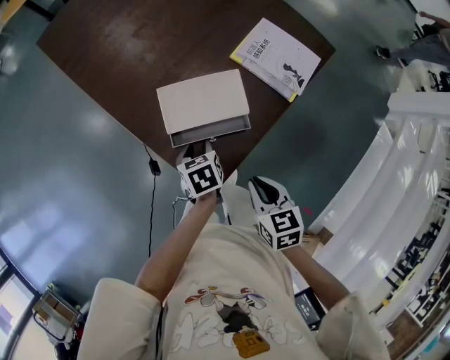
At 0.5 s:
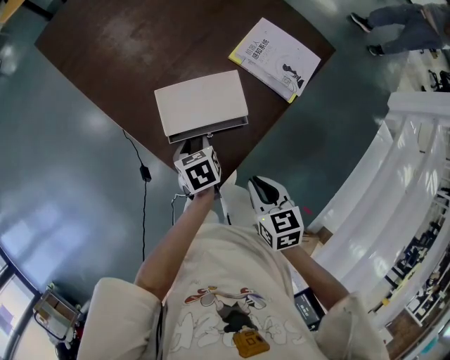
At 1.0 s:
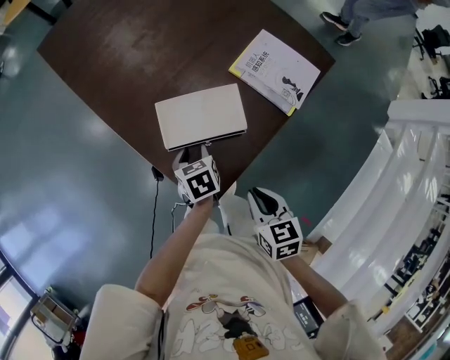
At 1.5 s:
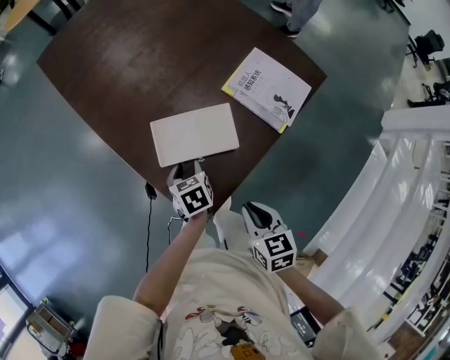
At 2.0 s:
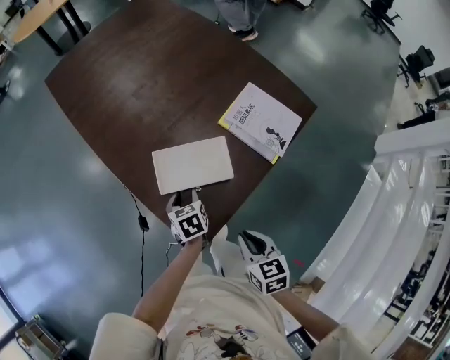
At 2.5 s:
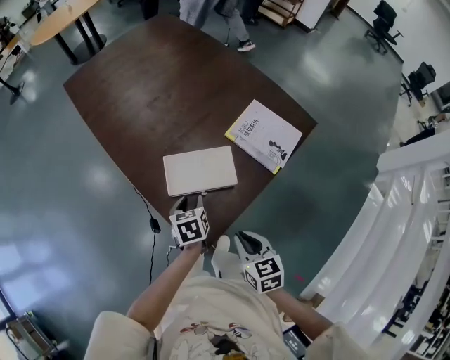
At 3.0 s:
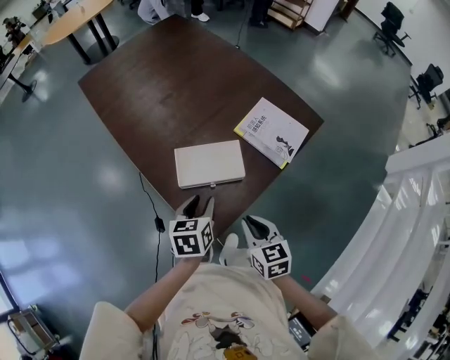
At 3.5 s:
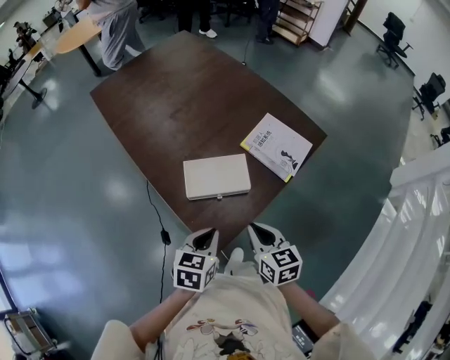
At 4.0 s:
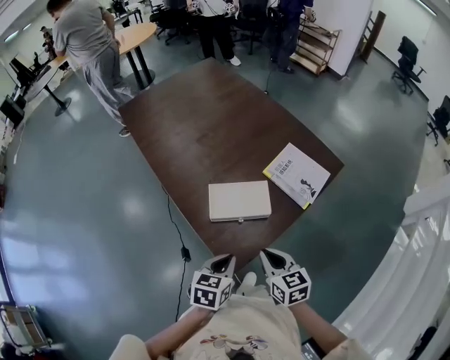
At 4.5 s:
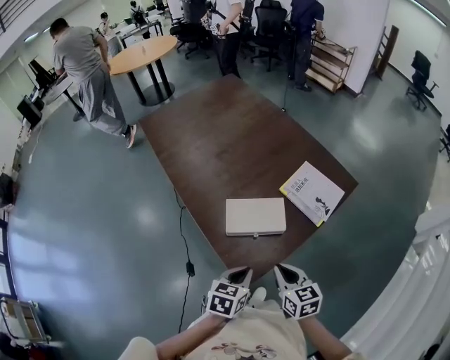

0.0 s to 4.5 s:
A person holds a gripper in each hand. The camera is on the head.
0.0 to 2.0 s: The grippers move only a little.
2.0 to 4.5 s: The left gripper moves upward and backward, approximately 20 cm, rotates about 30 degrees, and closes. Meanwhile the right gripper shifts about 10 cm upward.

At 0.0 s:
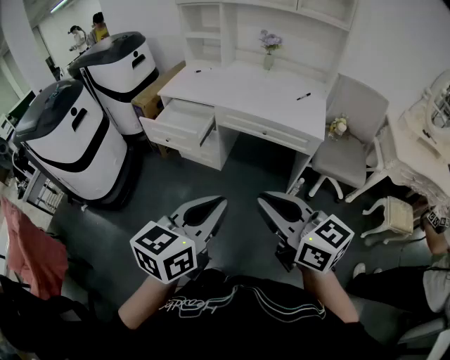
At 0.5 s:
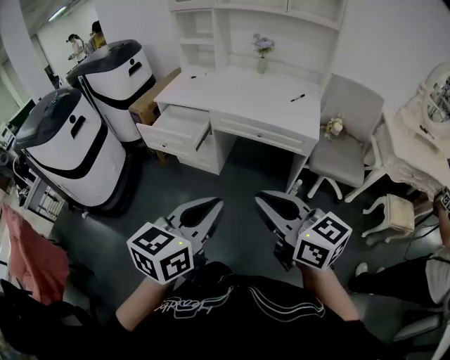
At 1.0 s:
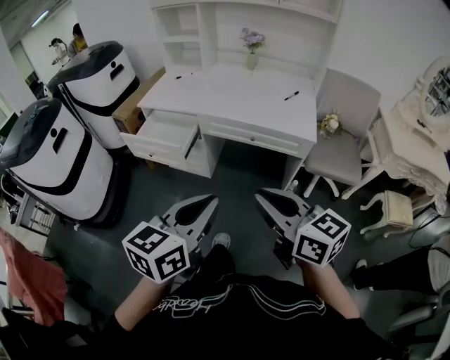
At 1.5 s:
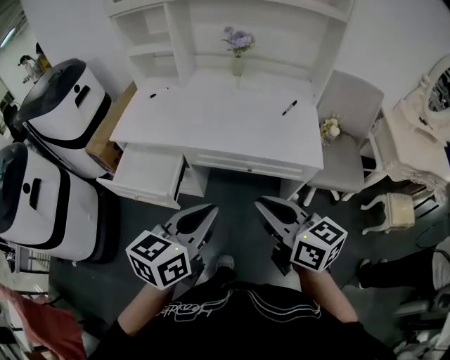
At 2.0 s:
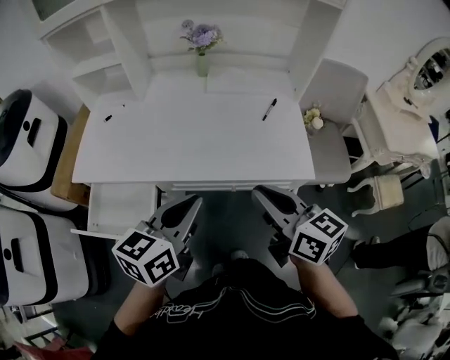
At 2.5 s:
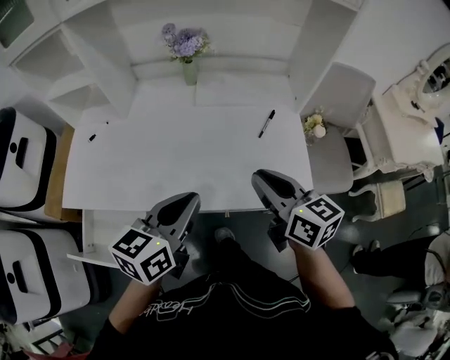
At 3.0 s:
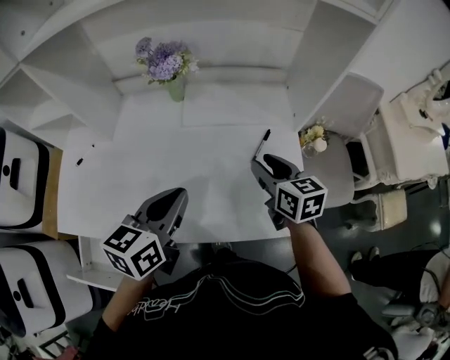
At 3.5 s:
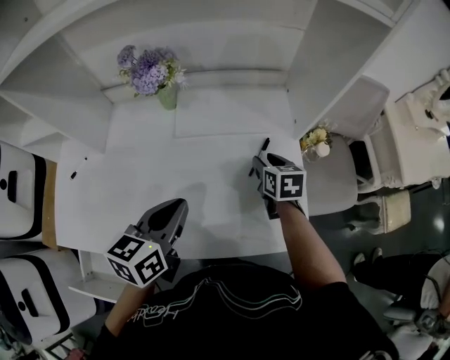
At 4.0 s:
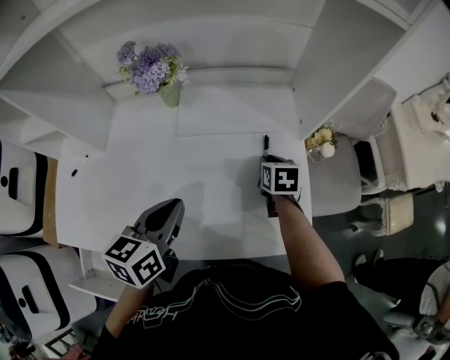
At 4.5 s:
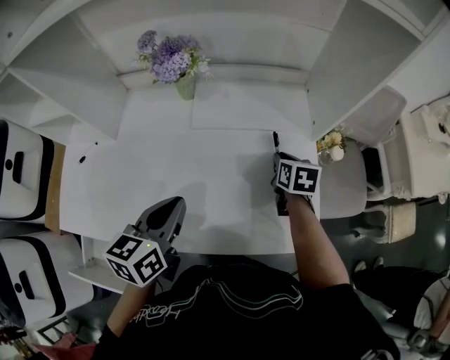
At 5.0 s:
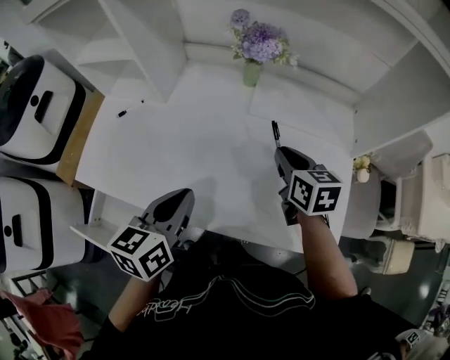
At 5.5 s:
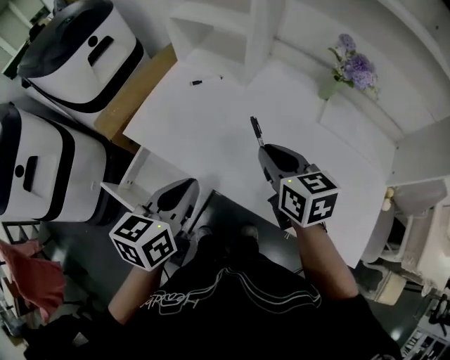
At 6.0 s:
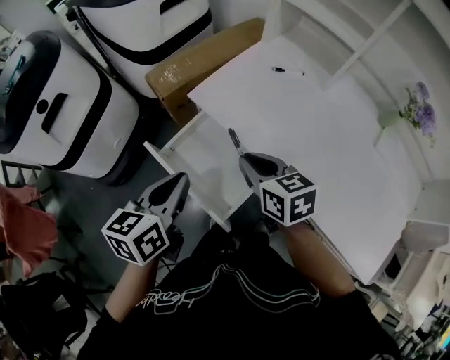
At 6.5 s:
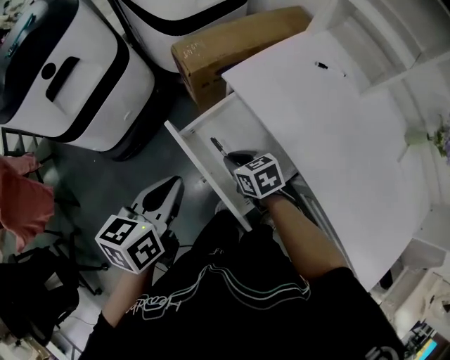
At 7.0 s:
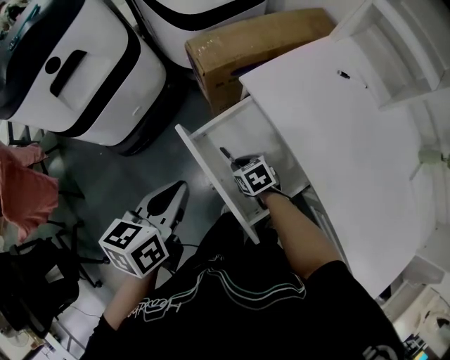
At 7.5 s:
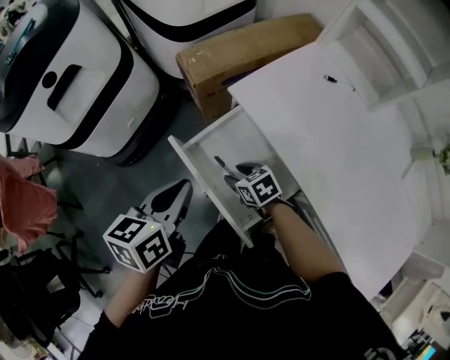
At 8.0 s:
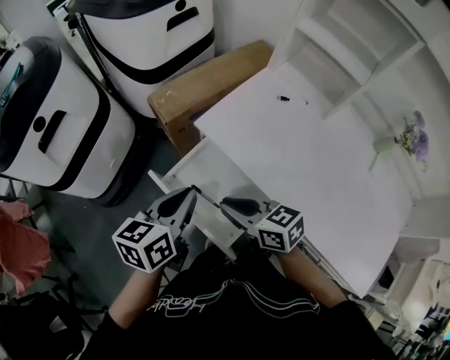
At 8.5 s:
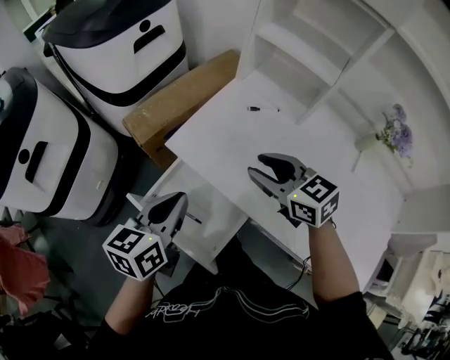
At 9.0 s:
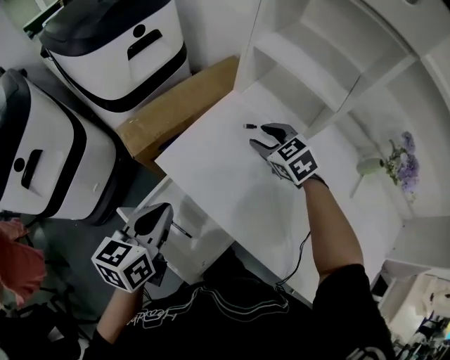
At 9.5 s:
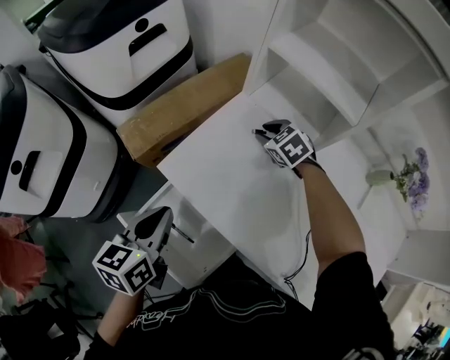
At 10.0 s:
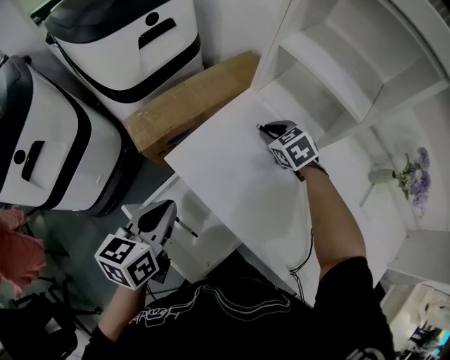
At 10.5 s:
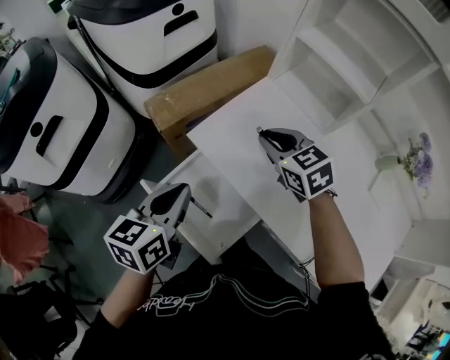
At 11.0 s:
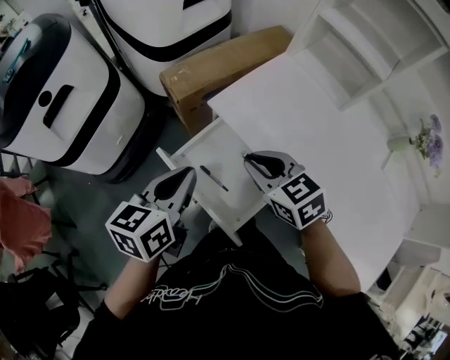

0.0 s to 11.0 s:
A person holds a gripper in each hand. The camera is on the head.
0.0 to 2.0 s: The two grippers travel together, forward, about 50 cm. The right gripper changes its angle by some 30 degrees.
2.0 to 3.5 s: The right gripper travels forward and downward by some 50 cm, points its fingers about 30 degrees further downward, and opens. The left gripper travels forward by approximately 30 cm.
3.5 to 5.5 s: The left gripper moves approximately 35 cm, and turns by about 30 degrees. The right gripper shifts by approximately 50 cm, changes its angle by about 50 degrees, and closes.
5.5 to 7.5 s: The right gripper shifts by approximately 50 cm, swivels about 50 degrees, and opens, while the left gripper moves approximately 35 cm, and swivels approximately 30 degrees.
7.5 to 9.0 s: The right gripper heads to the right, upward and forward, covering some 40 cm, changes its angle by some 30 degrees, and closes and opens again. The left gripper heads to the right, forward and upward, covering about 20 cm.
9.0 to 11.0 s: The left gripper is displaced to the left and backward by about 15 cm. The right gripper heads backward and to the left, covering about 30 cm, and closes its fingers.

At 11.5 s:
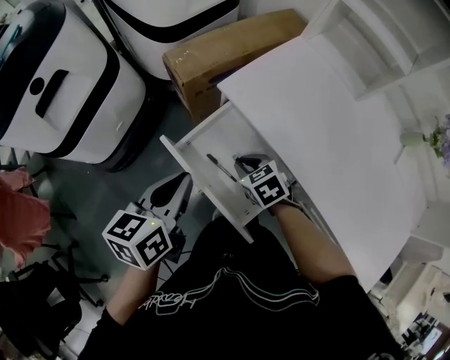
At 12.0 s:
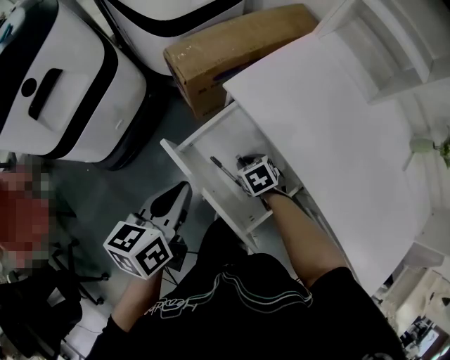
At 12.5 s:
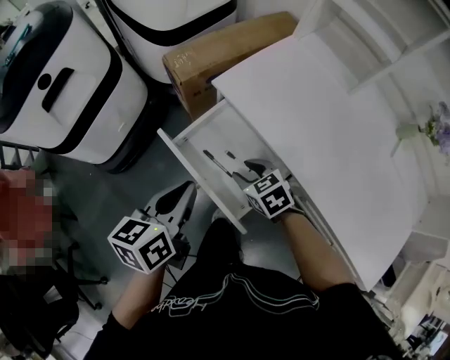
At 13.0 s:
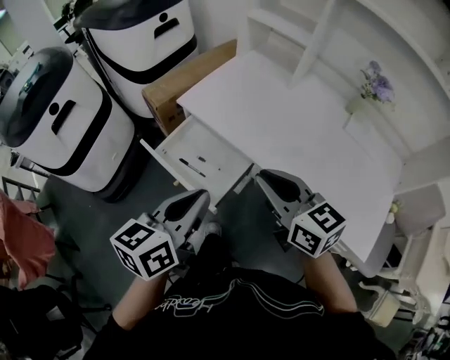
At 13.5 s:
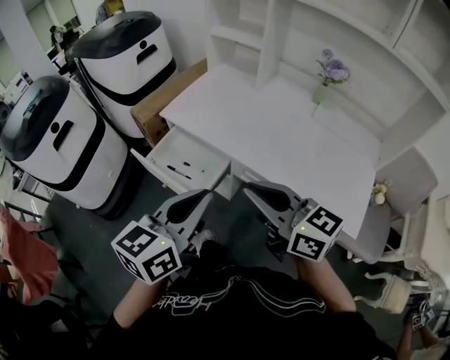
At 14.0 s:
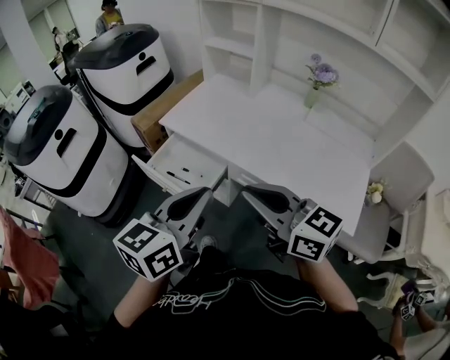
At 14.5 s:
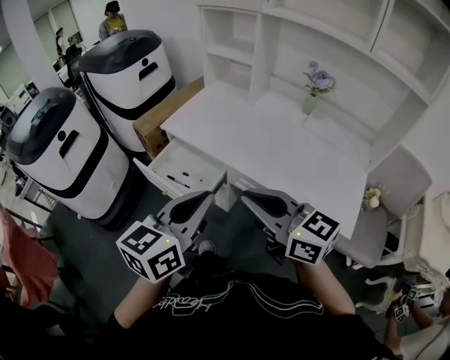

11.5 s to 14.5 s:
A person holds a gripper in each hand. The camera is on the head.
11.5 to 13.0 s: The left gripper goes roughly 30 cm backward, to the right and upward. The right gripper heads upward, backward and to the right, covering roughly 40 cm, tips its fingers upward by roughly 40 degrees, and opens and closes again.
13.0 to 14.5 s: The left gripper shifts some 20 cm backward, to the right and upward, while the right gripper moves backward and upward, about 20 cm.

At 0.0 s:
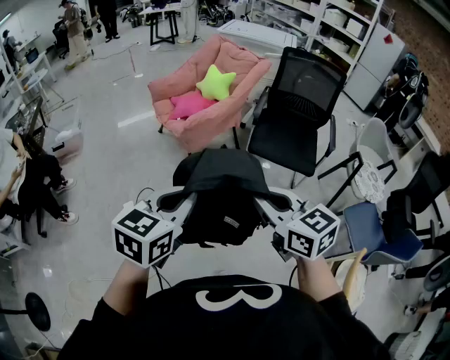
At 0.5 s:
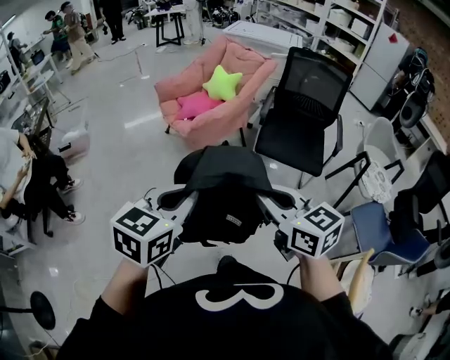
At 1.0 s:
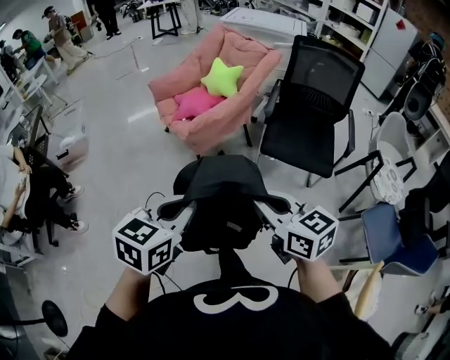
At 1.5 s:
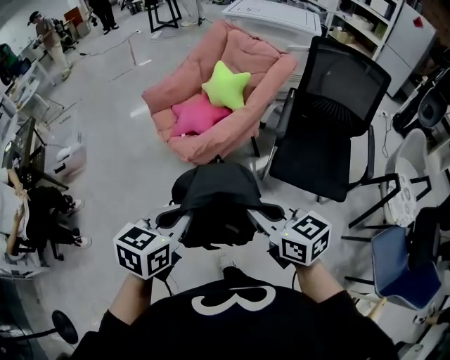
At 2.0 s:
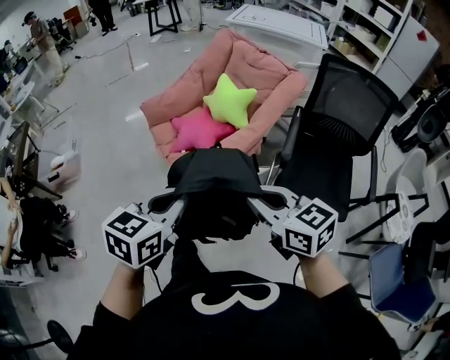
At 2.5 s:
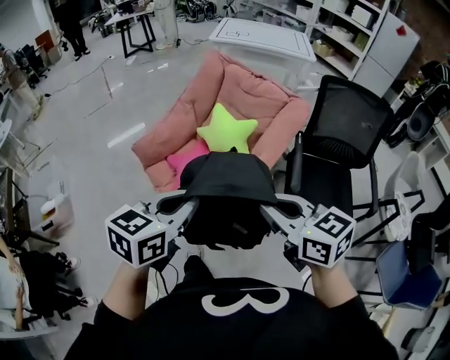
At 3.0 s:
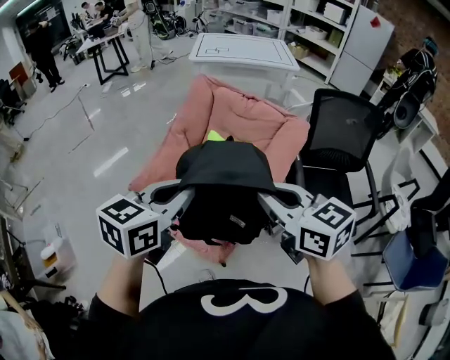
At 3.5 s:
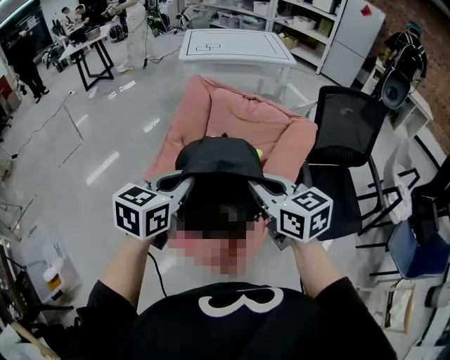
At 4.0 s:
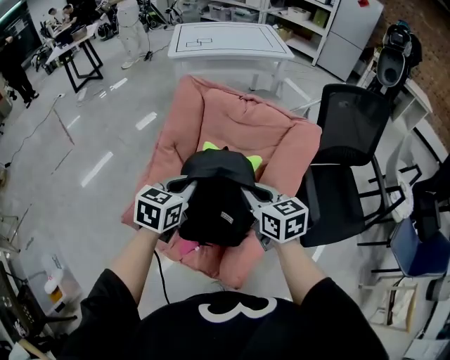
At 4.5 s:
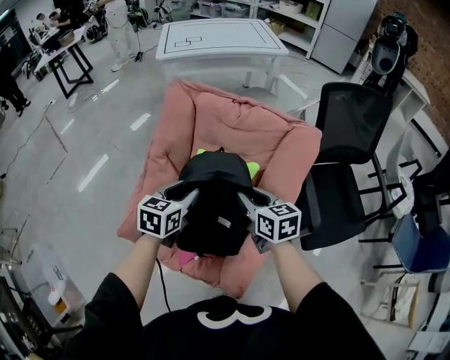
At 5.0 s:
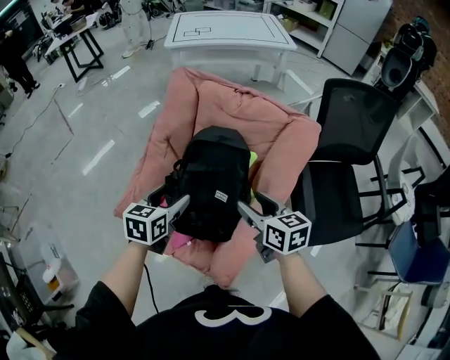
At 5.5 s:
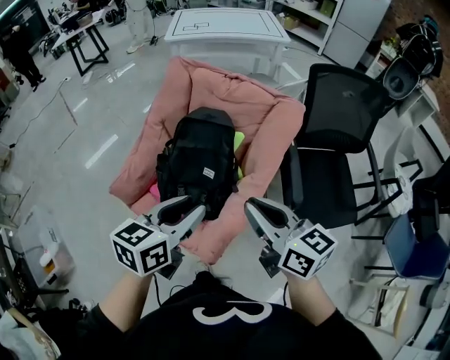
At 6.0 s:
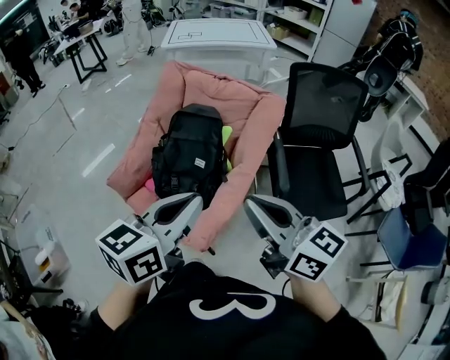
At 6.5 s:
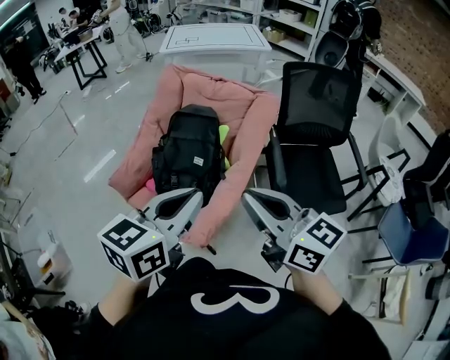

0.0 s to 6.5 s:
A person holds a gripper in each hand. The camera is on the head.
0.0 to 2.0 s: The pair of grippers is taken forward, approximately 50 cm.
2.0 to 4.5 s: The pair of grippers is taken some 60 cm. The right gripper swivels roughly 50 degrees. Meanwhile the left gripper turns by some 30 degrees, and opens up.
4.5 to 6.5 s: The right gripper goes roughly 40 cm backward and upward, rotates about 30 degrees, and opens and closes again, while the left gripper shifts about 50 cm backward, upward and to the right, and closes its fingers.

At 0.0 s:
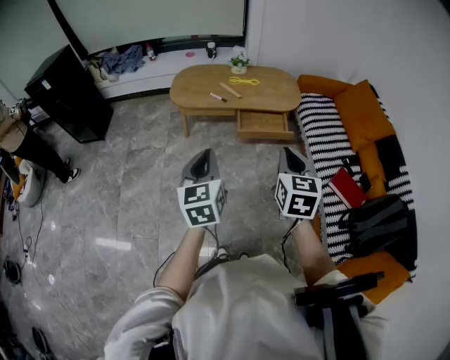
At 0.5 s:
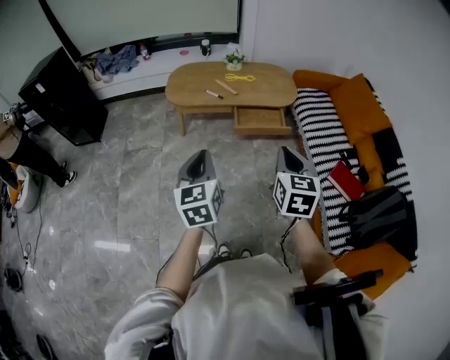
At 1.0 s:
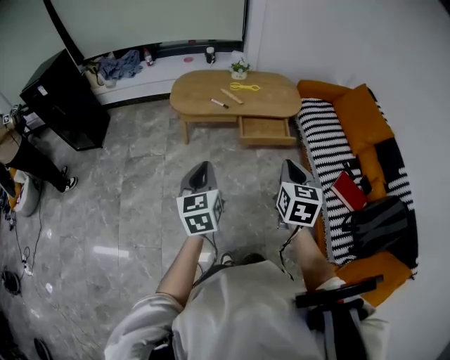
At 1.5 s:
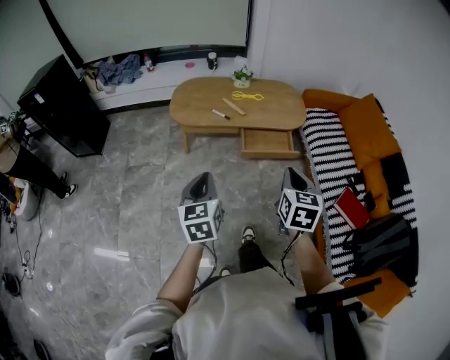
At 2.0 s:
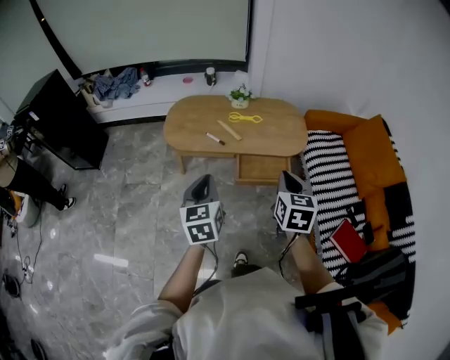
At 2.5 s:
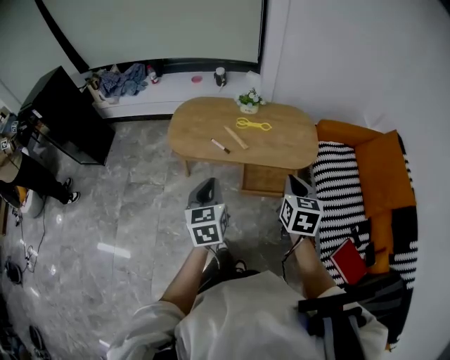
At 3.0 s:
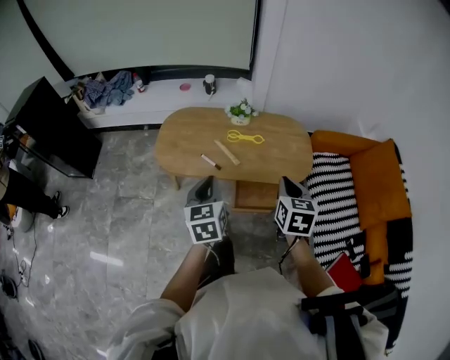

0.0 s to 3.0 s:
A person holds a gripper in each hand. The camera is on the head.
0.0 to 1.5 s: The left gripper travels forward, downward and to the left by about 15 cm. The right gripper shifts roughly 10 cm forward.
1.5 to 3.0 s: The grippers both shift forward by approximately 35 cm.
